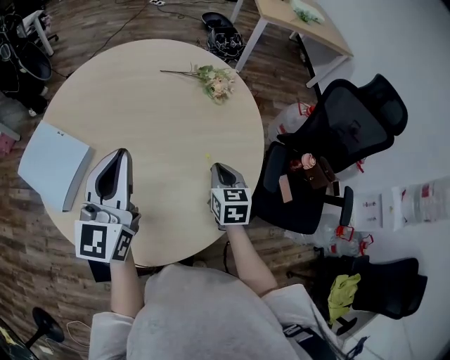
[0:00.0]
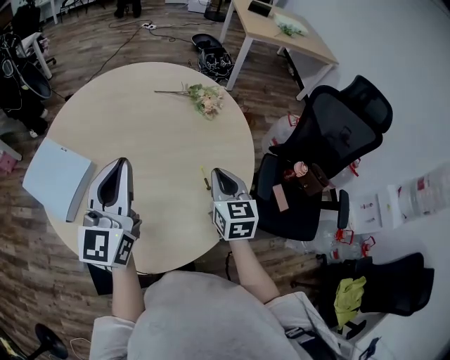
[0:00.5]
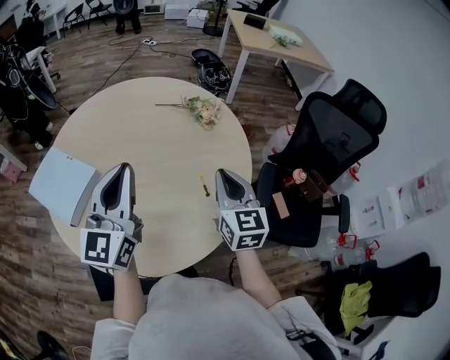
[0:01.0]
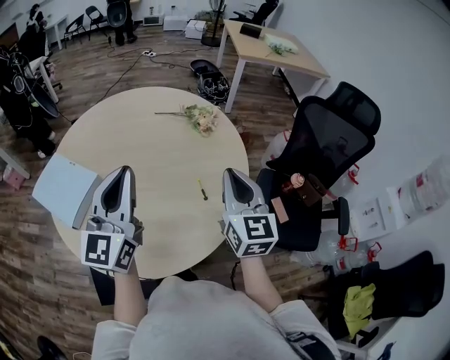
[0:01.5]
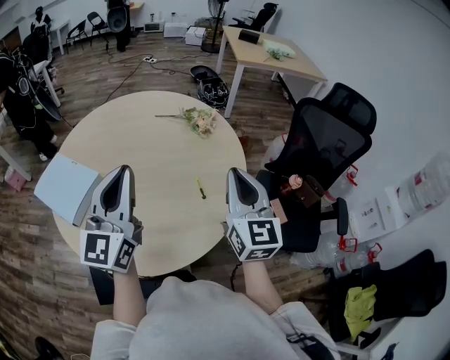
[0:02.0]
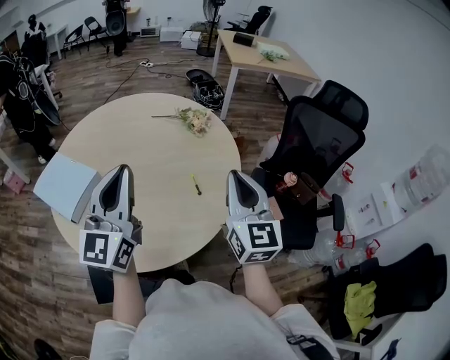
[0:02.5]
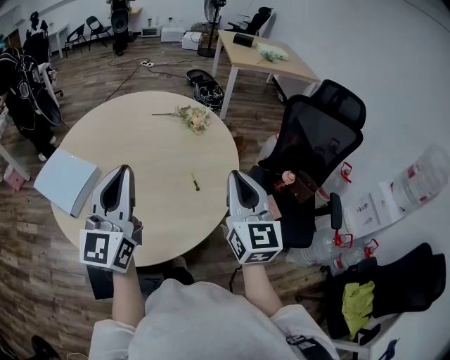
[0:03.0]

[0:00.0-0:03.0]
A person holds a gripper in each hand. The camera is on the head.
0:00.0 to 0:01.5: The right gripper moves upward, approximately 25 cm, and angles its fingers upward, by roughly 30 degrees, while the left gripper travels upward and backward by roughly 10 cm.
0:01.5 to 0:03.0: The two grippers go about 10 cm backward.

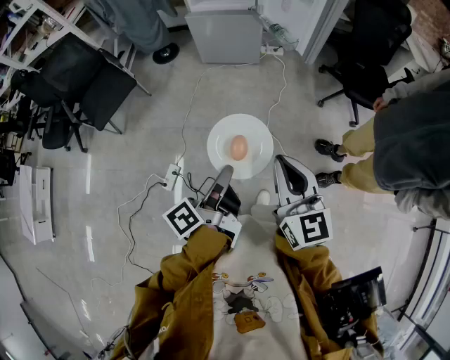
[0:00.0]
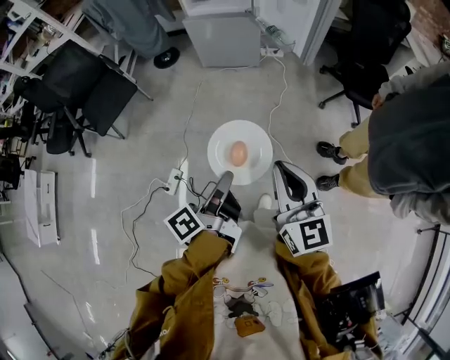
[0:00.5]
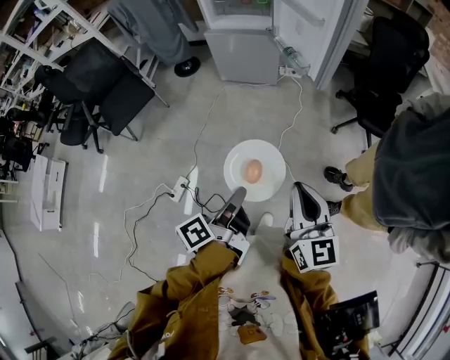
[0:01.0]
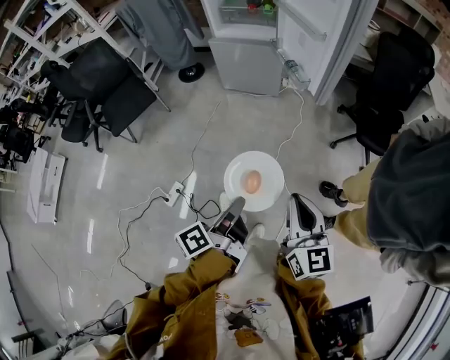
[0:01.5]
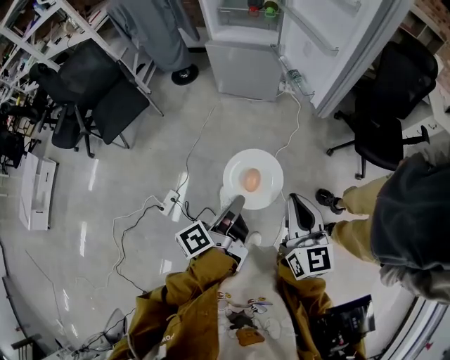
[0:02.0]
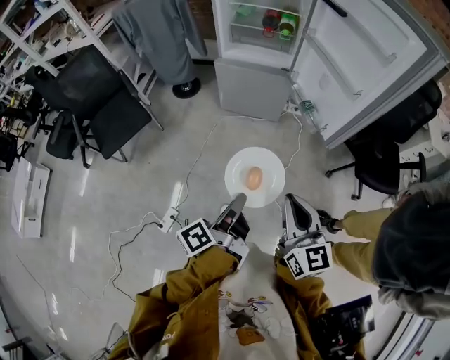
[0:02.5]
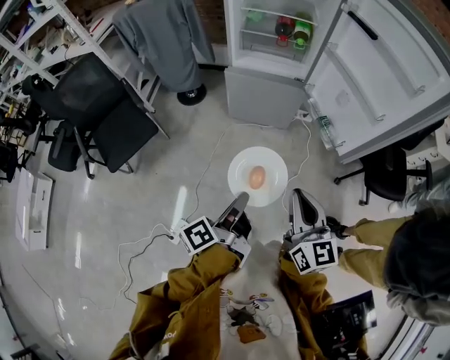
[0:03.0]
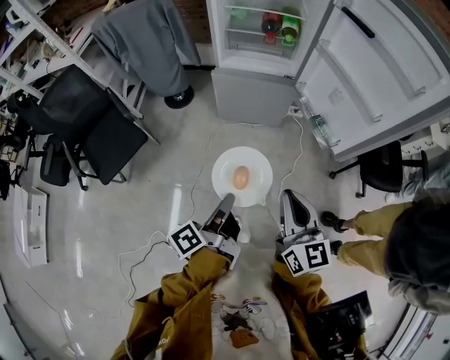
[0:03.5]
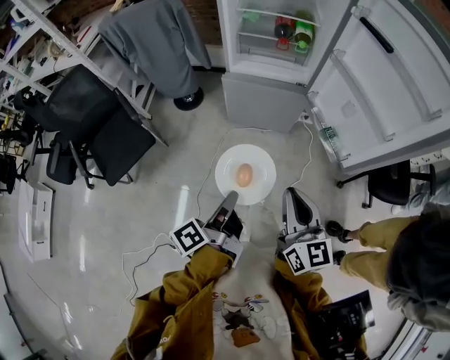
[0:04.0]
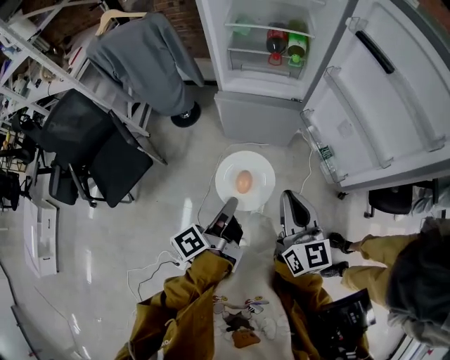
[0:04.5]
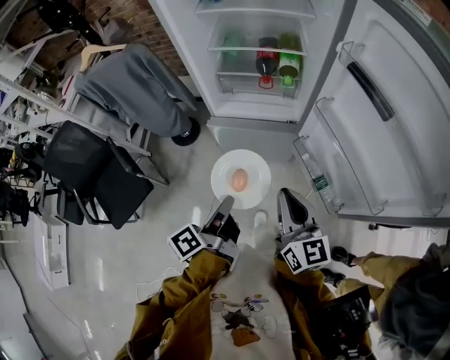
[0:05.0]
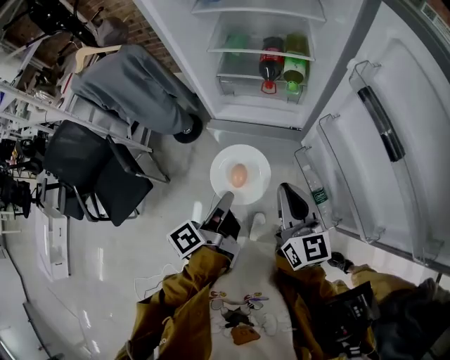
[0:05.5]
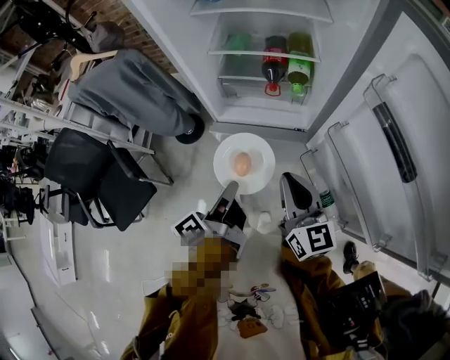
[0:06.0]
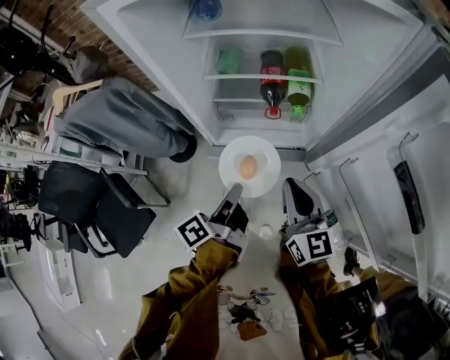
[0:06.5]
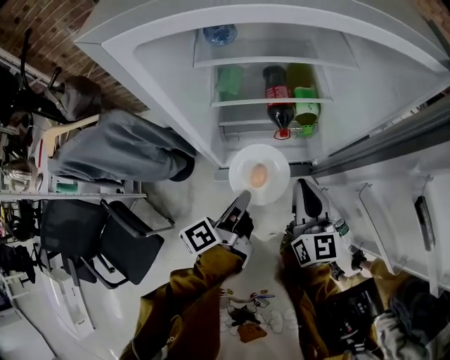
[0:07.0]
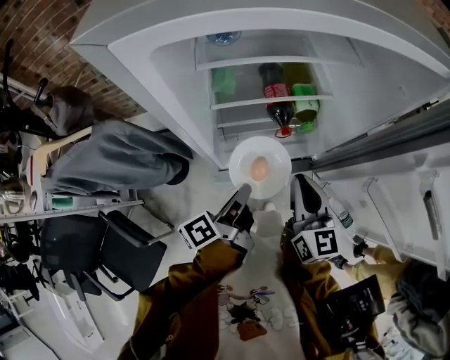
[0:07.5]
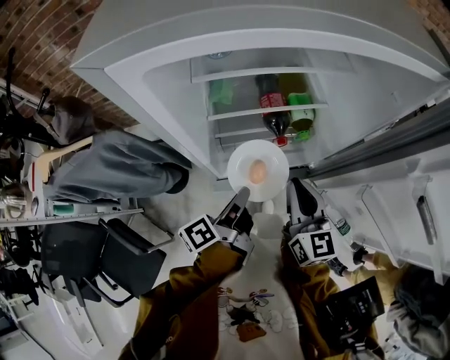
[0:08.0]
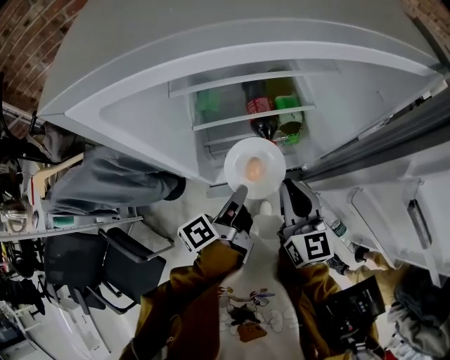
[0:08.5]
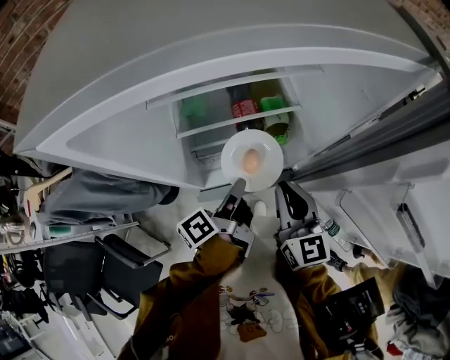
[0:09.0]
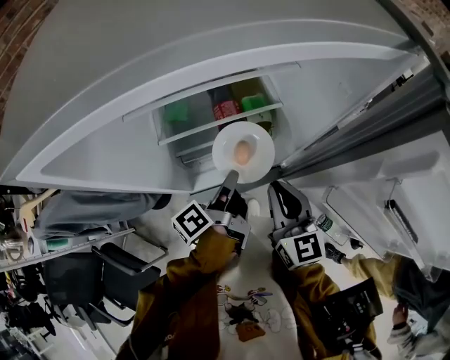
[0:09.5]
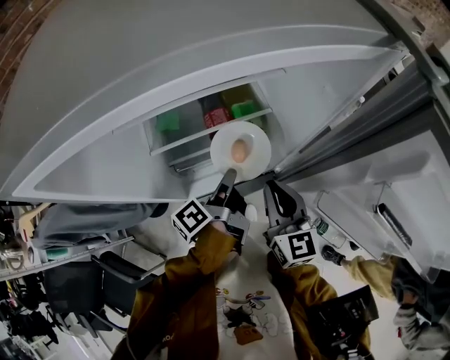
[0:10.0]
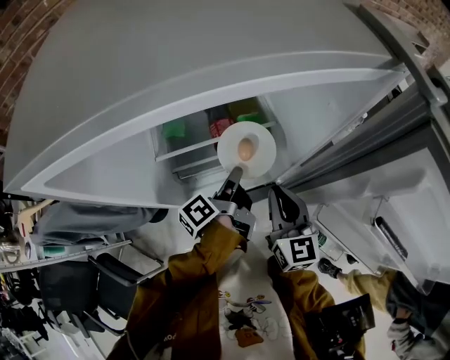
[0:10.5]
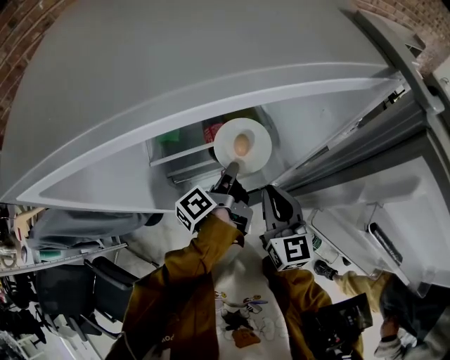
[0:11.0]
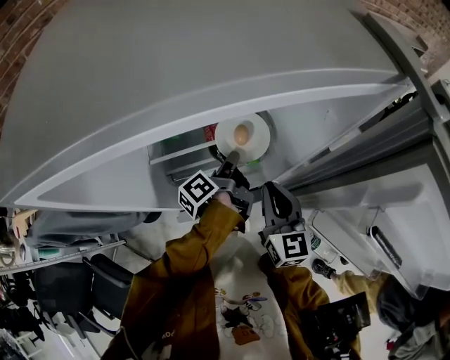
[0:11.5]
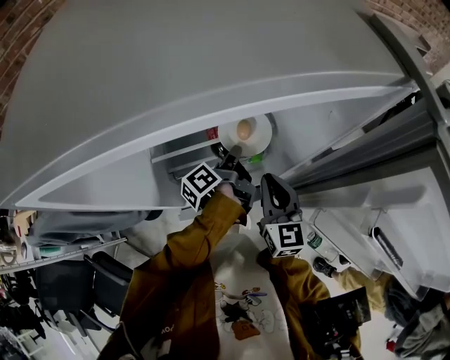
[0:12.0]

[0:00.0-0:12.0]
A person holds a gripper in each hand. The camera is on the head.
0:00.0 to 0:02.0: The right gripper ends up approximately 15 cm from where it was.
0:02.0 to 0:04.0: The right gripper ends up roughly 35 cm from where it was.
0:04.0 to 0:06.0: The right gripper moves about 35 cm.
0:06.0 to 0:08.0: The right gripper changes place by approximately 20 cm, and rotates about 20 degrees.
0:08.0 to 0:10.0: The right gripper ends up some 10 cm from where it was.
0:10.0 to 0:12.0: The right gripper changes place by some 5 cm.

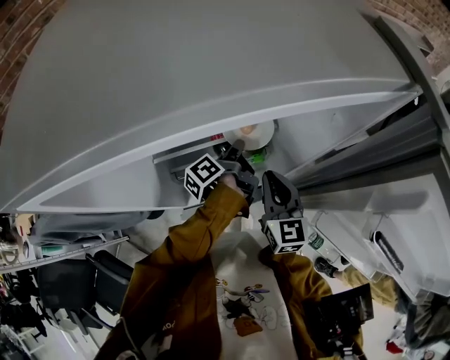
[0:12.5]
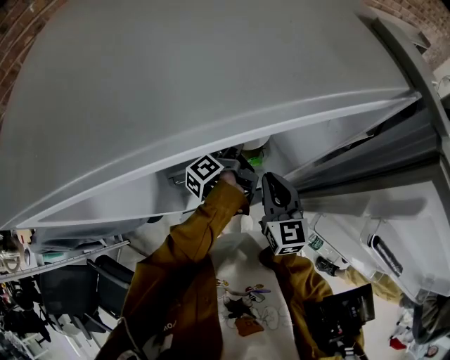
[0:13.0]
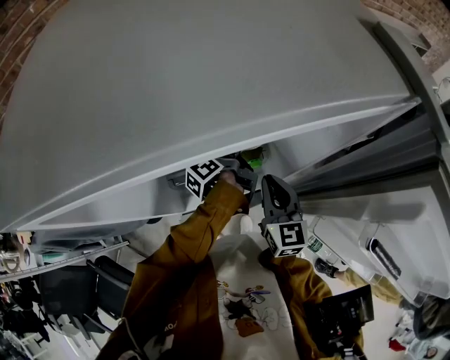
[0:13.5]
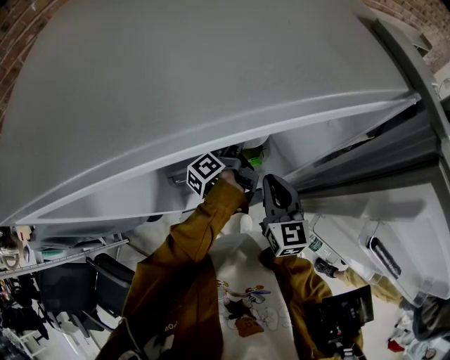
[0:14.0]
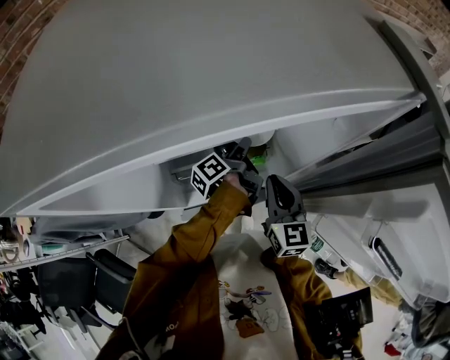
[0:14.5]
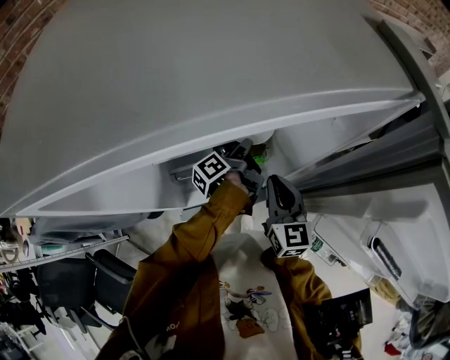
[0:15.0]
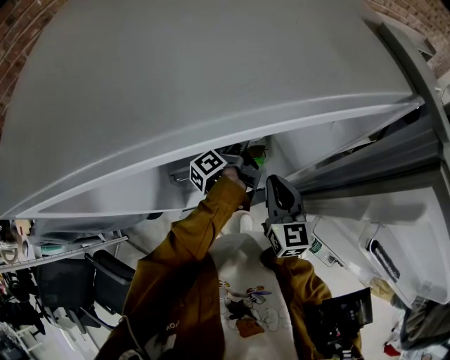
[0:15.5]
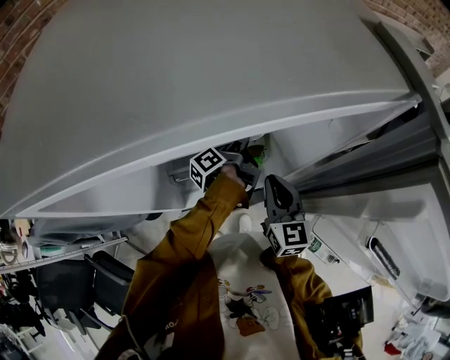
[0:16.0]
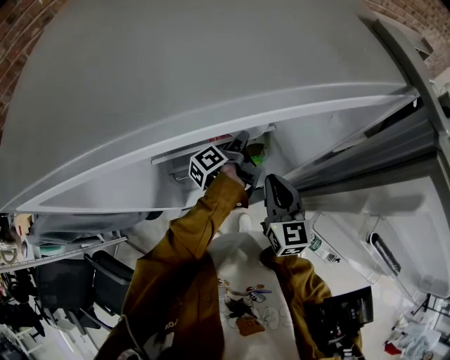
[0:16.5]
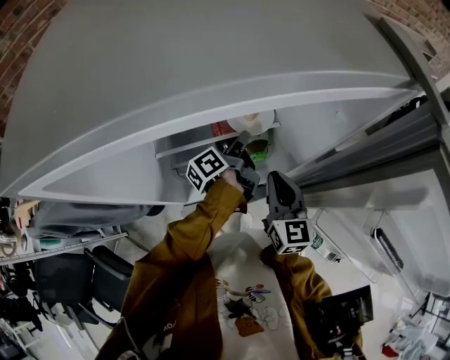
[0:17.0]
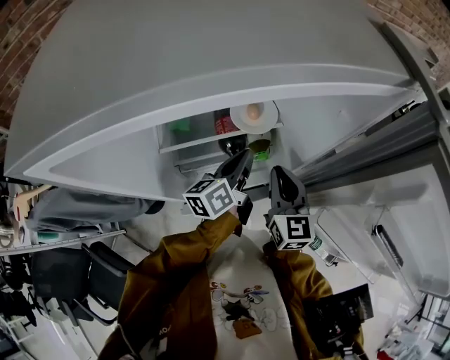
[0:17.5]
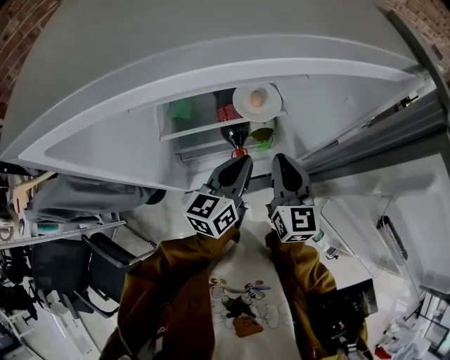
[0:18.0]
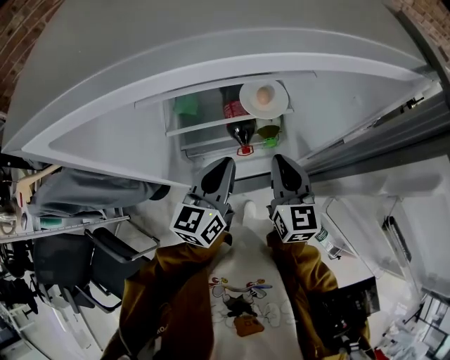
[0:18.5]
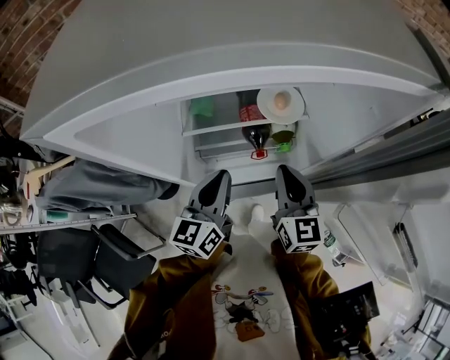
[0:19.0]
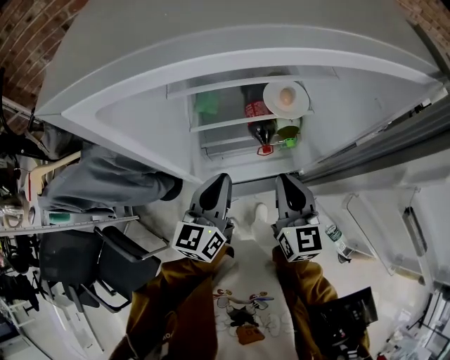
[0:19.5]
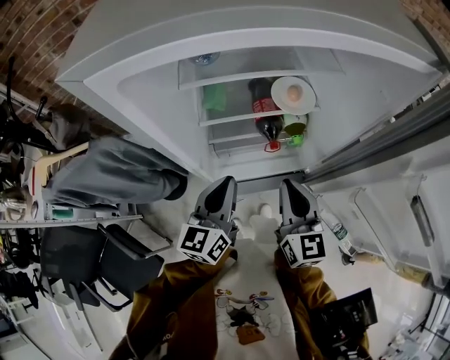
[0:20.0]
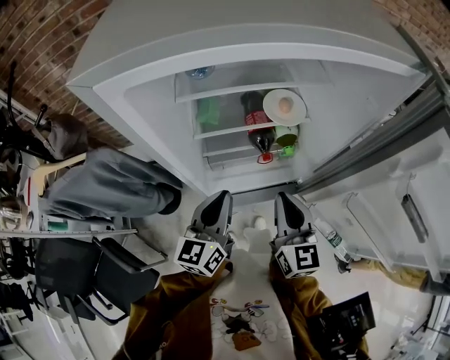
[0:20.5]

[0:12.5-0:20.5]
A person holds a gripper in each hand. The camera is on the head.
0:18.5 to 0:20.5: The right gripper moves some 10 cm.

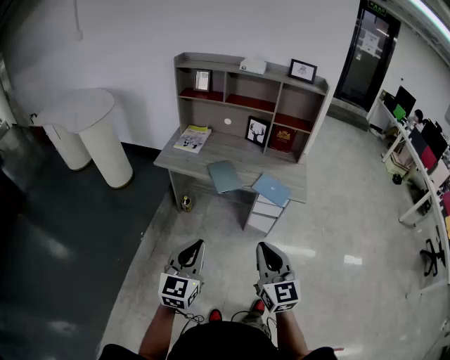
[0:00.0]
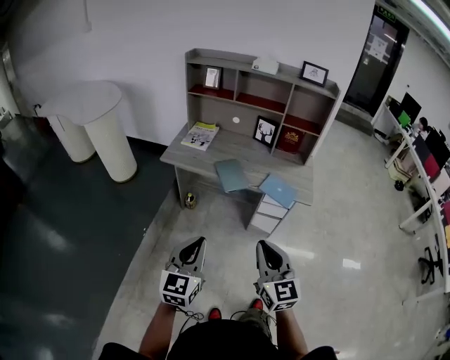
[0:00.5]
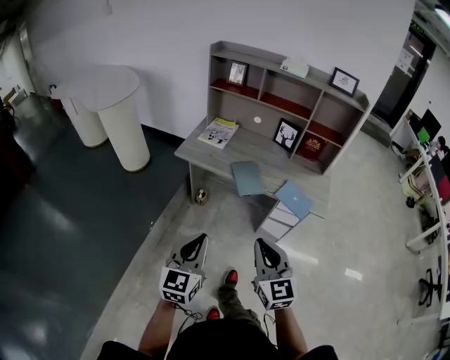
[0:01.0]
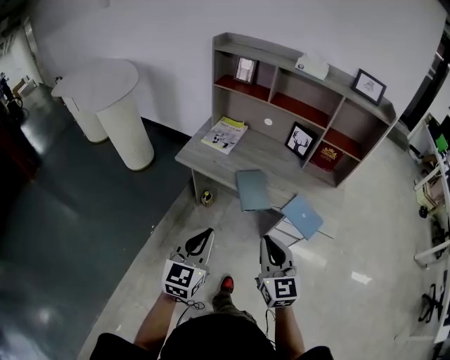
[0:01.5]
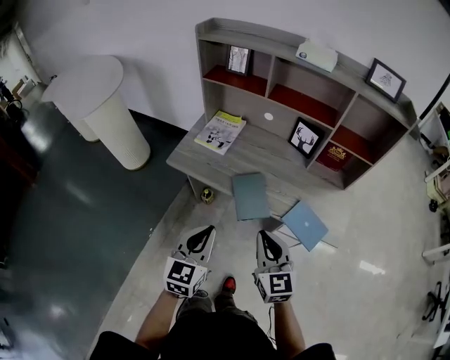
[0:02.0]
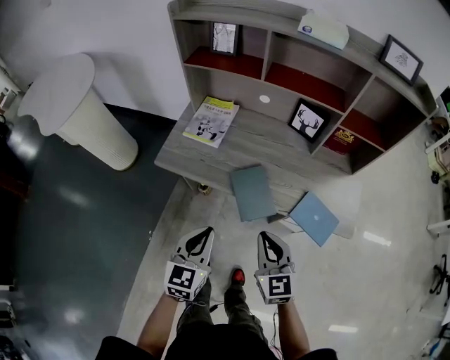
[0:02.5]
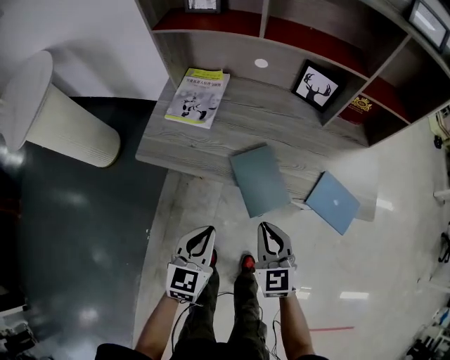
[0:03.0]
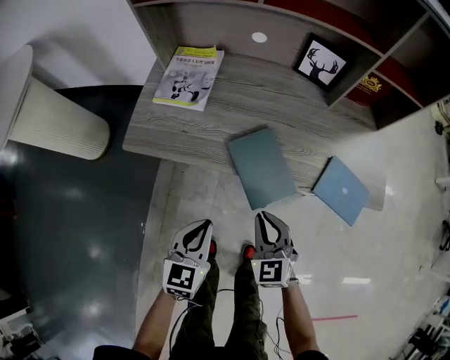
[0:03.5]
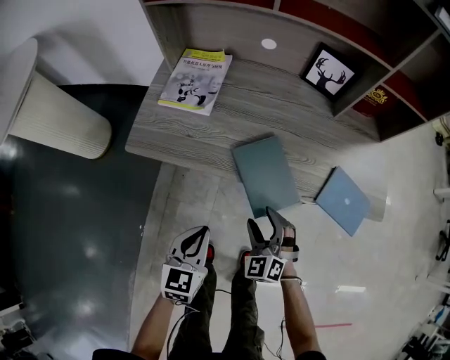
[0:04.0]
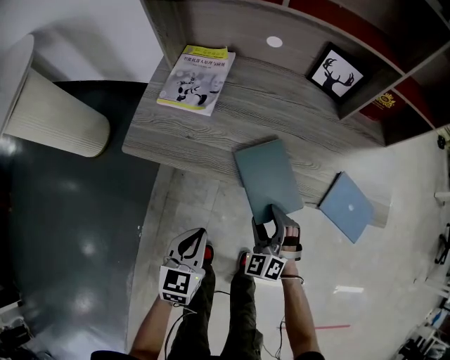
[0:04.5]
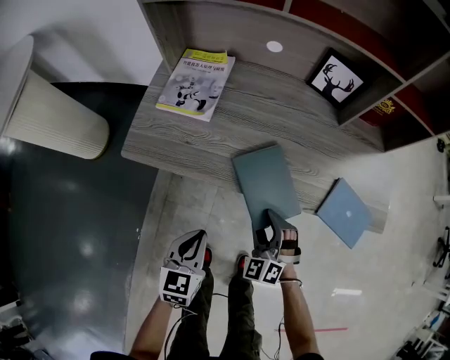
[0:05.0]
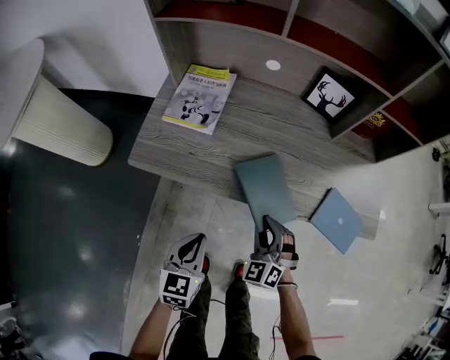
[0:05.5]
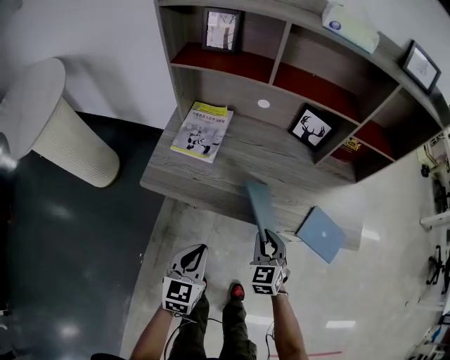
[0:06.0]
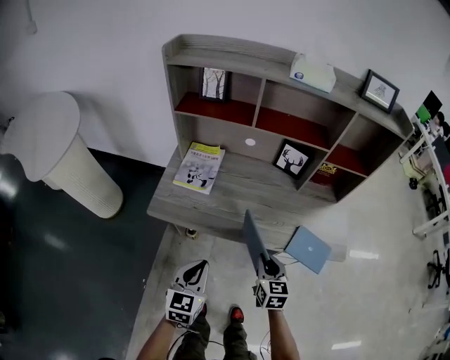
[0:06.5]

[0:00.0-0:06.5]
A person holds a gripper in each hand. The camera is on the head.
0:00.0 to 0:02.0: Both grippers travel together forward, roughly 30 cm.
0:02.0 to 0:04.5: The grippers both shift downward by about 30 cm. The left gripper changes its angle by about 20 degrees, while the right gripper swivels about 50 degrees, and opens its fingers.
0:04.5 to 0:06.5: Both grippers travel together upward, approximately 15 cm. The right gripper rotates around the line of its fingers by about 60 degrees, clockwise from behind, and closes up.
